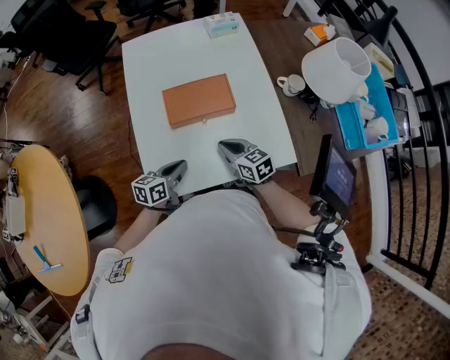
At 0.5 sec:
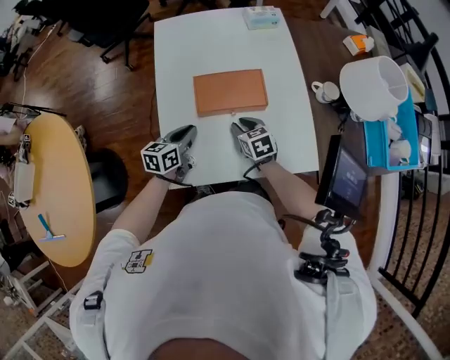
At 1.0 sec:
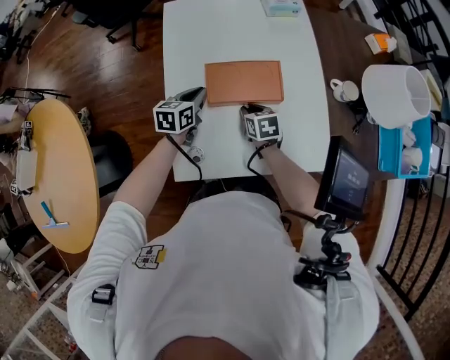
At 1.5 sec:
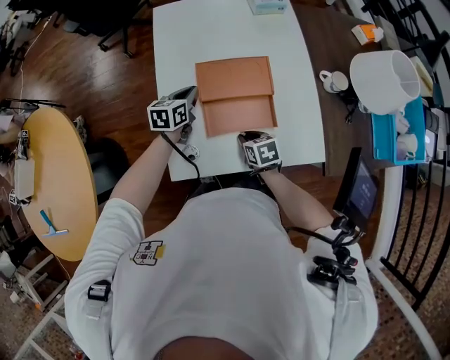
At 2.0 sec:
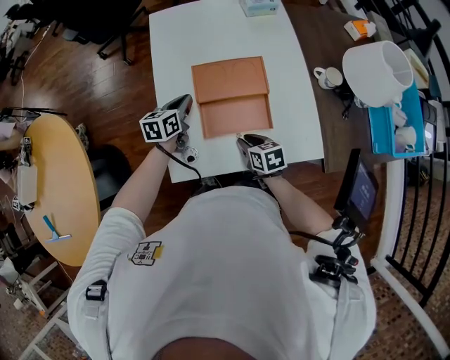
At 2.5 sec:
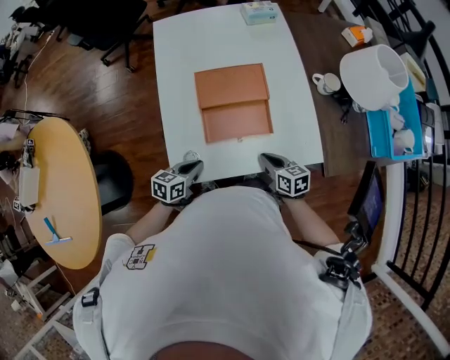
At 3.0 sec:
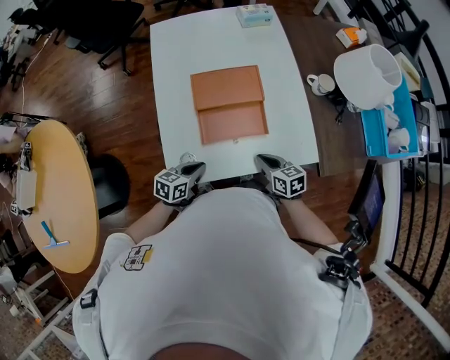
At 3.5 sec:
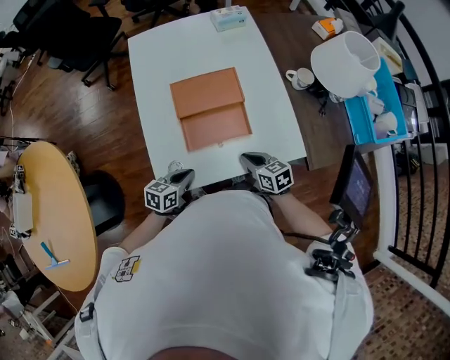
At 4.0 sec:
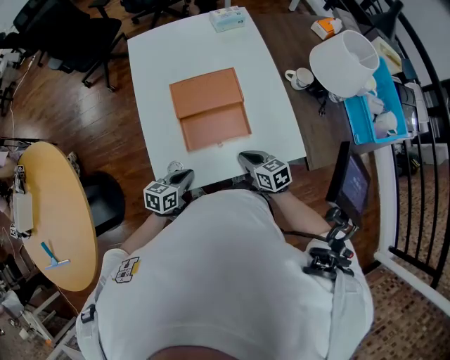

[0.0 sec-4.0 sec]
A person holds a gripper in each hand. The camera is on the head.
0.0 sec to 2.0 sec: The left gripper shifts about 15 cm forward. Meanwhile the right gripper moves downward, roughly 5 cm, travels forward and back again, about 10 cm each way, swivels some 20 degrees, and opens up.
2.0 sec to 4.0 sec: The left gripper heads backward, covering roughly 20 cm, and changes its angle by about 20 degrees, while the right gripper heads to the right, covering roughly 5 cm, and closes its fingers.

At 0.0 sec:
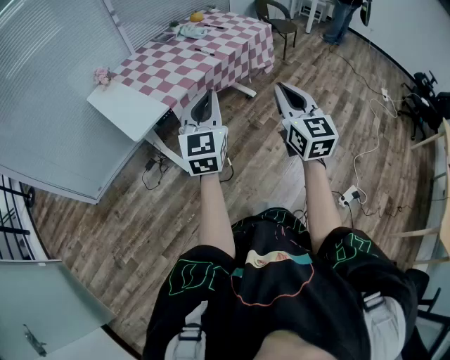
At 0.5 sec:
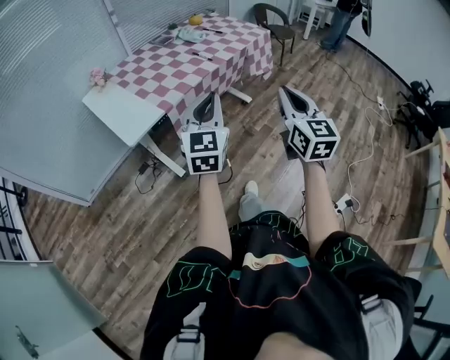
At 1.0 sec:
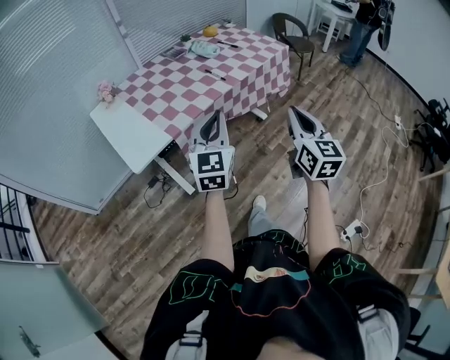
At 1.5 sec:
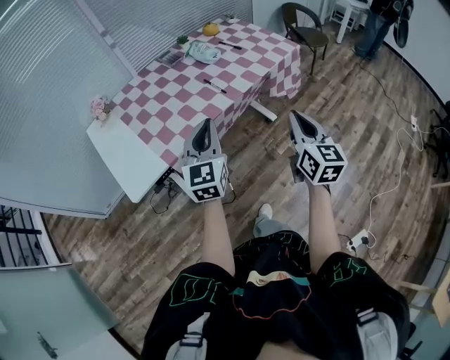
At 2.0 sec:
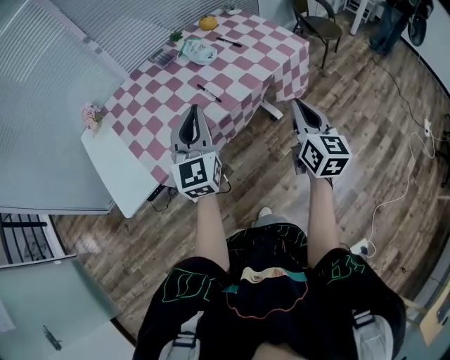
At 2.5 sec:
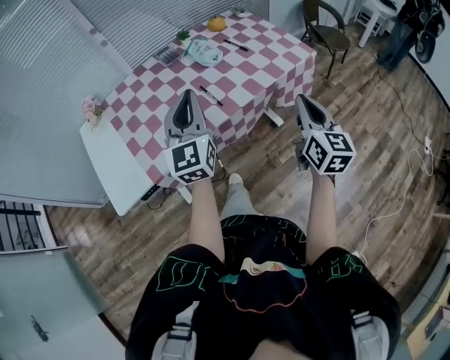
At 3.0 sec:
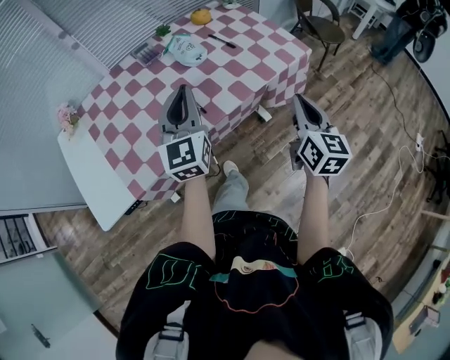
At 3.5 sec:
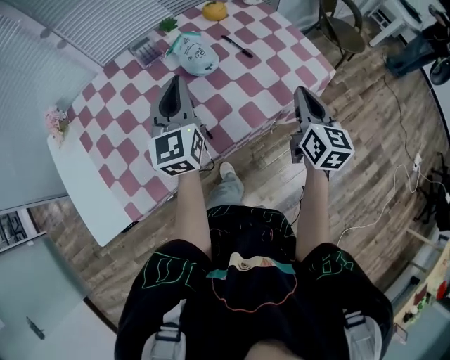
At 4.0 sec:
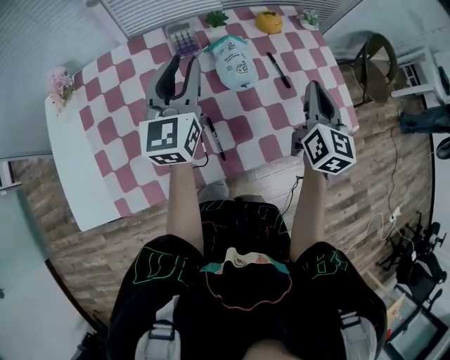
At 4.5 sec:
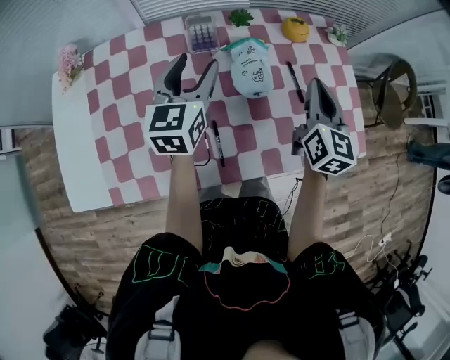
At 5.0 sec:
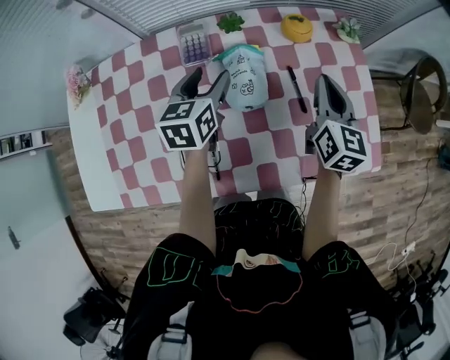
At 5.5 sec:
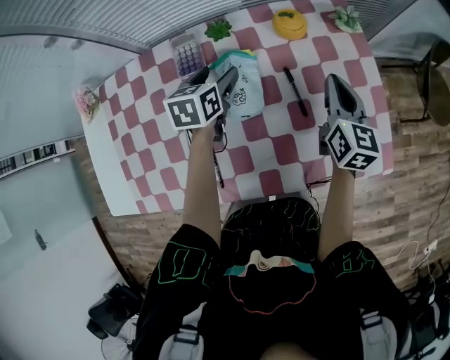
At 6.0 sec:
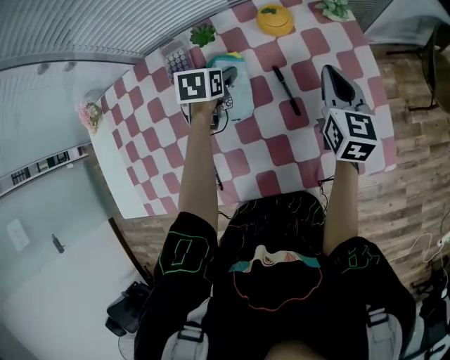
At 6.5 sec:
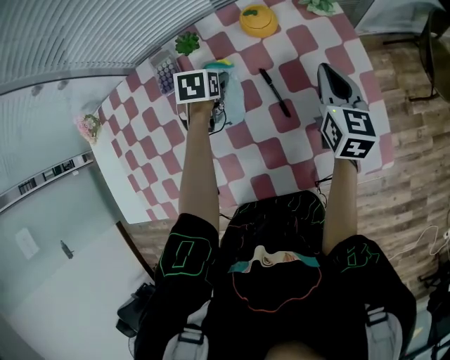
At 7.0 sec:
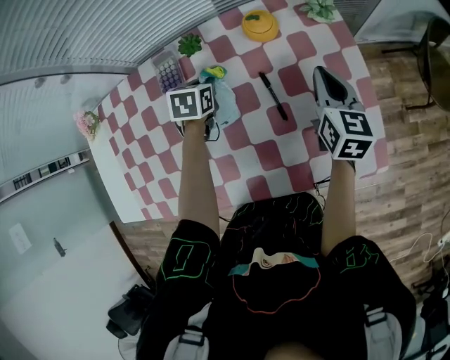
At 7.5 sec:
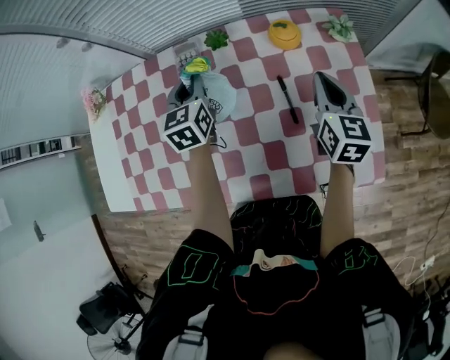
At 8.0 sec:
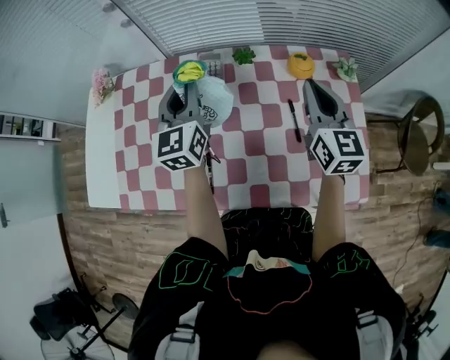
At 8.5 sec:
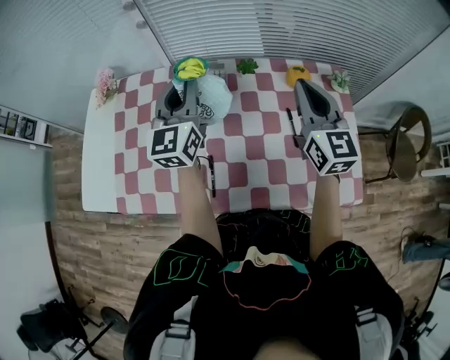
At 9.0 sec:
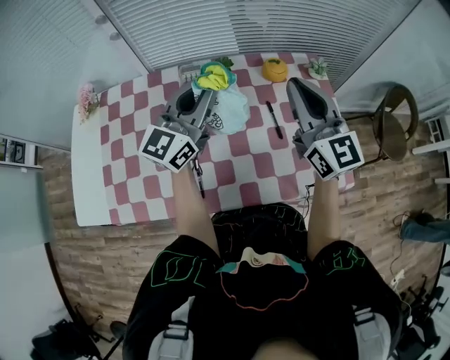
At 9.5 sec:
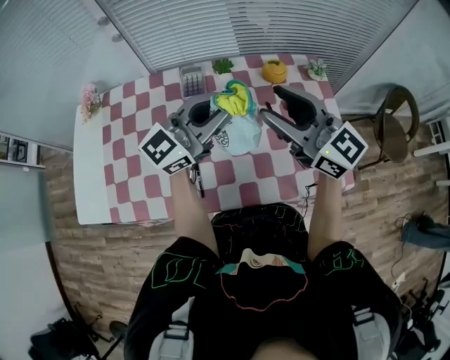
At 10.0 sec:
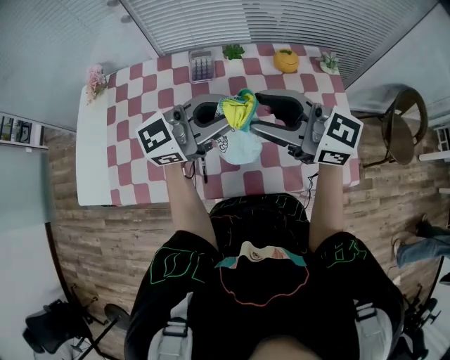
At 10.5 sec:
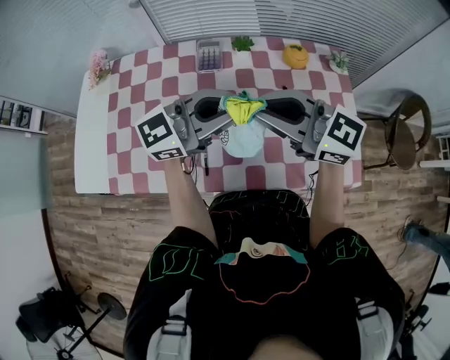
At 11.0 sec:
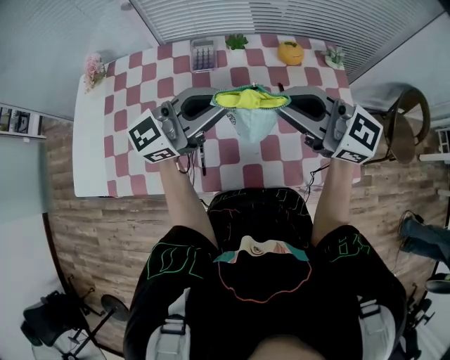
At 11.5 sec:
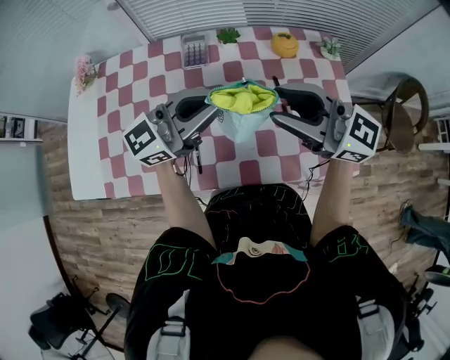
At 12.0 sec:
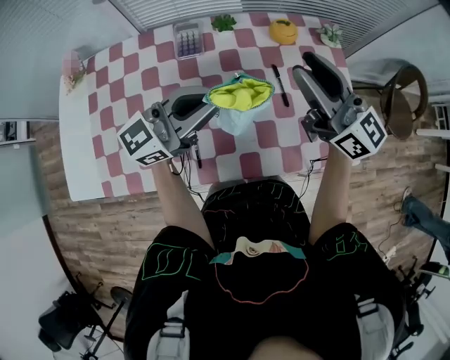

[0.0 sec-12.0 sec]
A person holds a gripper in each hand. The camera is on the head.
0.0 sec to 2.0 sec: Both grippers move forward, roughly 40 cm.
2.0 sec to 4.0 sec: Both grippers travel together forward, some 40 cm. The left gripper opens.
4.0 sec to 6.0 sec: The left gripper goes some 30 cm downward, forward and to the right, tips its fingers downward by approximately 60 degrees, and opens its fingers. Meanwhile the right gripper travels forward, downward and to the right by about 25 cm.
6.0 sec to 8.0 sec: Both grippers travel together upward and to the left, about 25 cm. The left gripper points its fingers about 60 degrees further upward, and closes up. Meanwhile the right gripper changes its angle by approximately 30 degrees.
8.0 sec to 10.0 sec: The right gripper ends up approximately 20 cm from where it was, changes its angle by roughly 50 degrees, and opens up. The left gripper shifts by some 20 cm, and rotates approximately 70 degrees.
10.0 sec to 12.0 sec: The right gripper changes place by some 10 cm, swivels some 30 degrees, and closes and opens again; the left gripper changes place by about 5 cm.

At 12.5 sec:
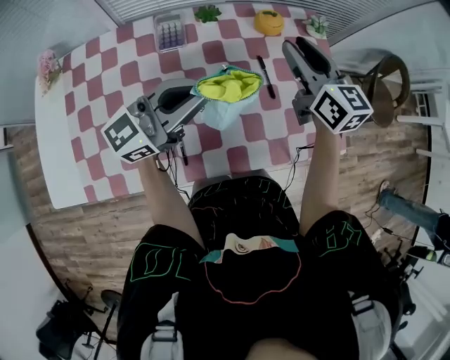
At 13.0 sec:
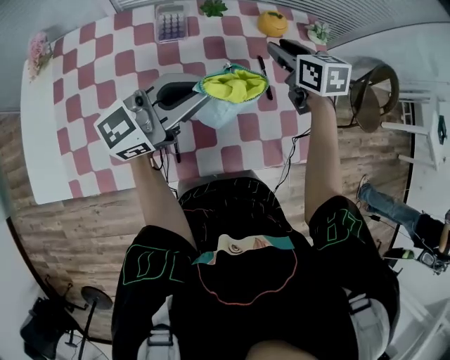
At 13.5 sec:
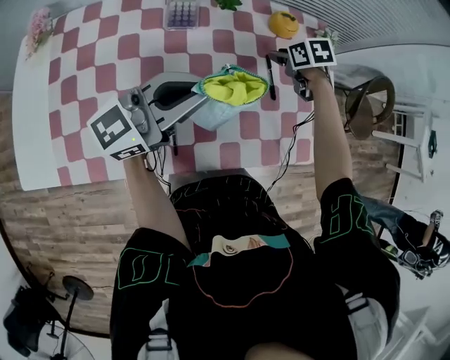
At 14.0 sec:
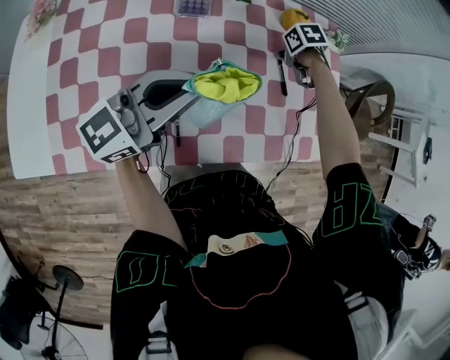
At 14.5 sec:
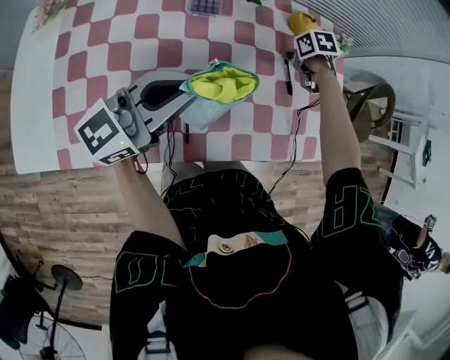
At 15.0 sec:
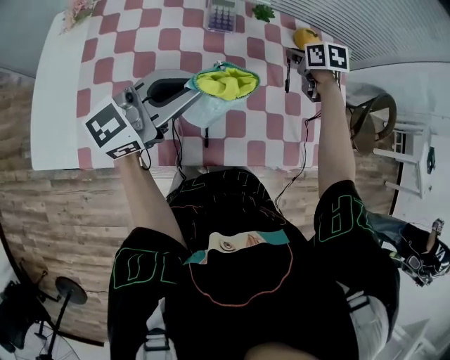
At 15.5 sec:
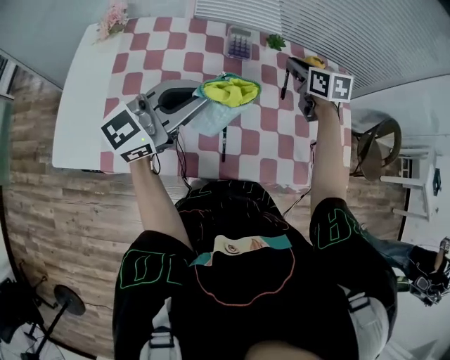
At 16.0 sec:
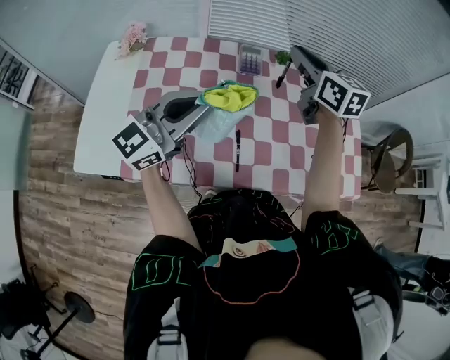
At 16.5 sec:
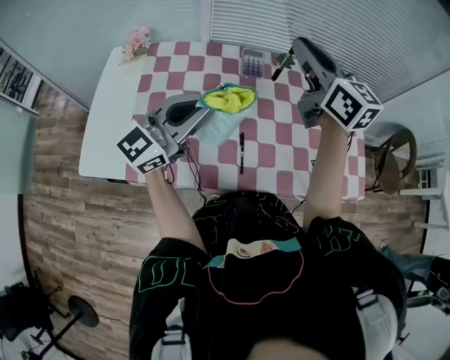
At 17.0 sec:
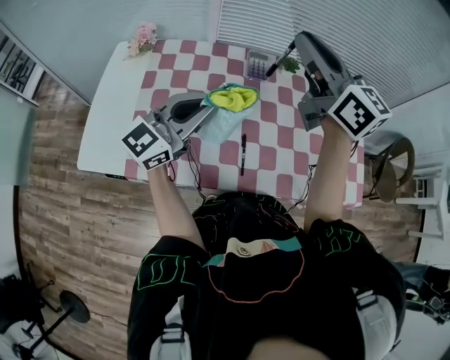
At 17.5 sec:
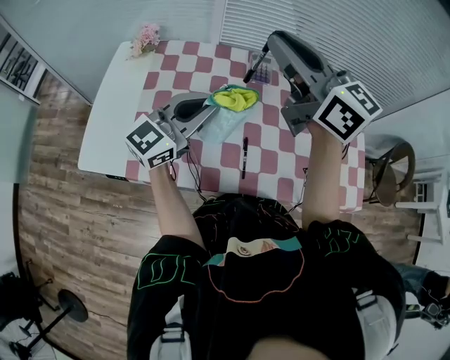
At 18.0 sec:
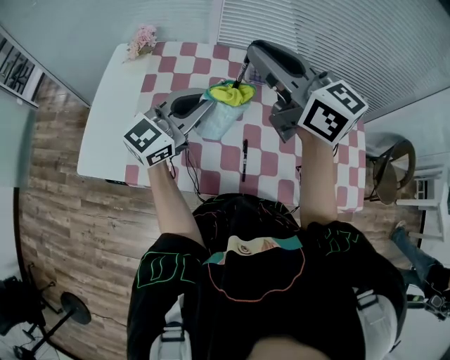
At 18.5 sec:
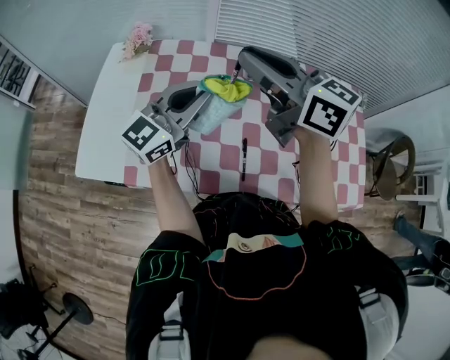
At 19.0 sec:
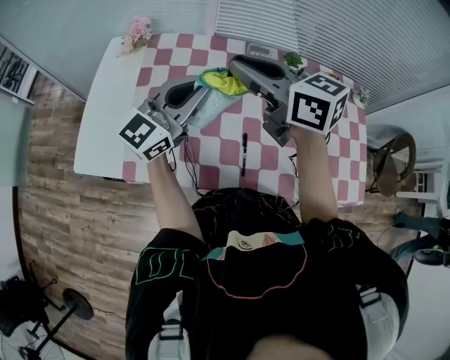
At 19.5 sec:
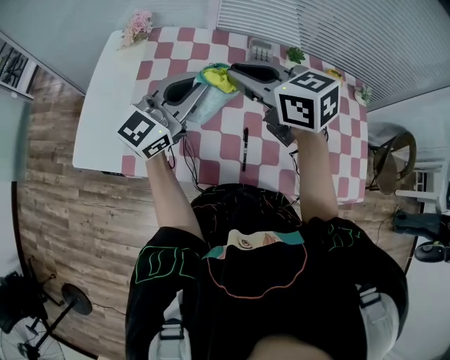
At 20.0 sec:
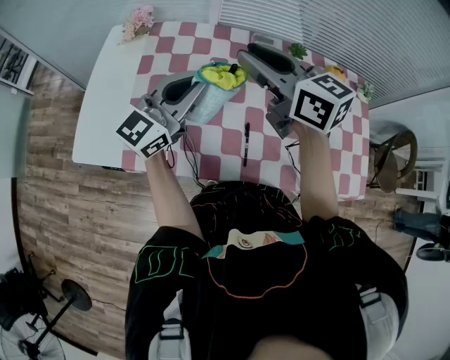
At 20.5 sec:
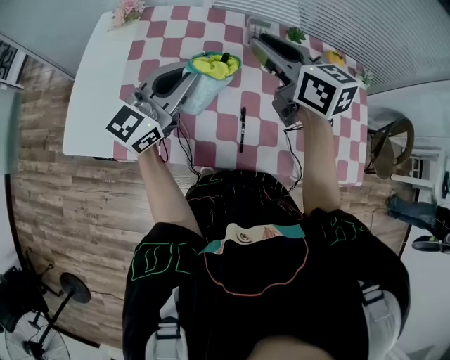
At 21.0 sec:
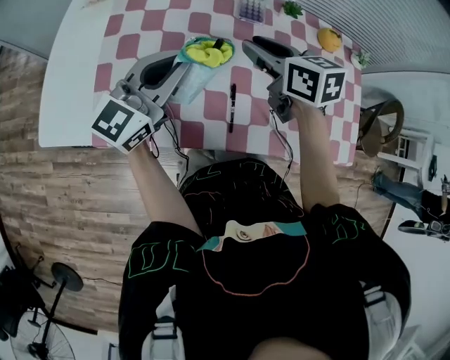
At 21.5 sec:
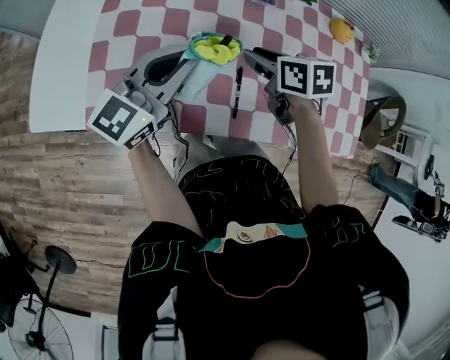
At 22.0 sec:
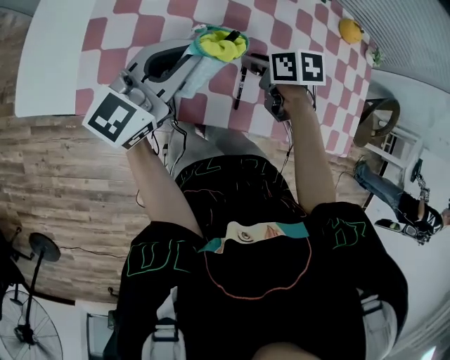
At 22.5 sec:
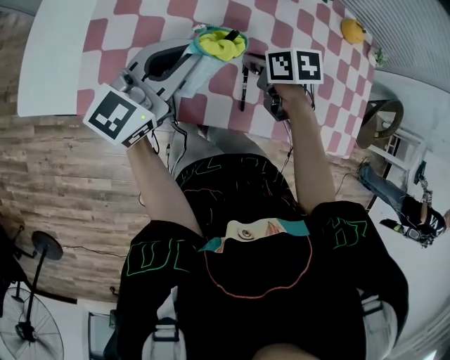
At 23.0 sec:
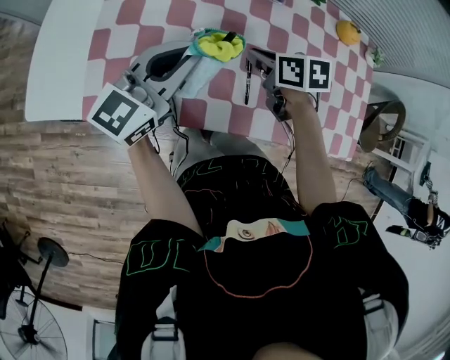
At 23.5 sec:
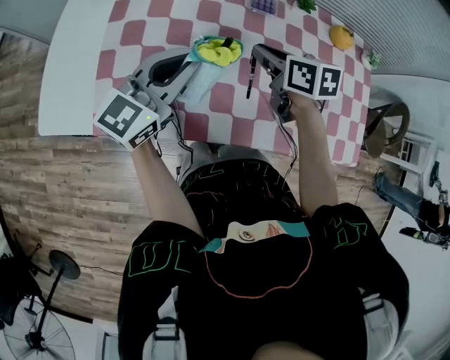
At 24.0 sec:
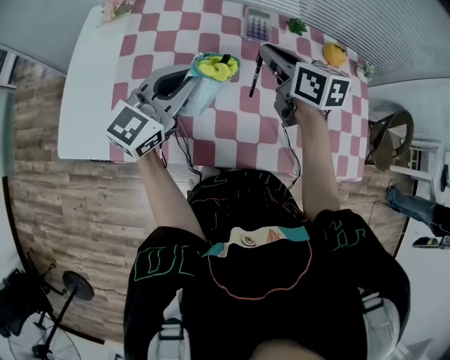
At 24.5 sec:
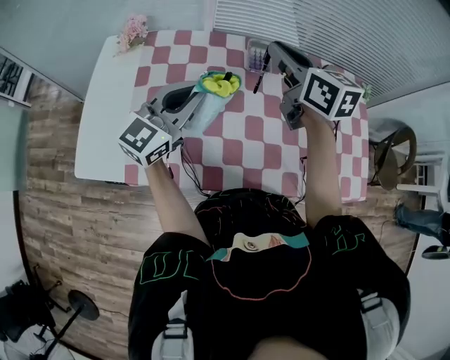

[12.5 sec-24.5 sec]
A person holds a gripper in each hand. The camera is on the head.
12.5 sec to 14.5 sec: The right gripper goes roughly 25 cm downward, points its fingers some 70 degrees further downward, and closes up. The left gripper changes place by roughly 10 cm.
14.5 sec to 16.5 sec: The right gripper shifts some 40 cm upward, and points its fingers some 80 degrees further upward. Meanwhile the left gripper shifts by roughly 15 cm.
16.5 sec to 18.5 sec: The right gripper goes about 15 cm to the left, and swivels some 30 degrees. The left gripper heads forward, covering some 5 cm.
18.5 sec to 20.5 sec: The right gripper heads downward, covering some 10 cm.
20.5 sec to 22.5 sec: The left gripper travels downward by some 10 cm. The right gripper travels downward by some 30 cm, and tilts its fingers approximately 50 degrees downward.
22.5 sec to 24.5 sec: The right gripper is displaced upward and forward by roughly 35 cm, and angles its fingers upward, by about 50 degrees; the left gripper is displaced upward and forward by about 10 cm.
